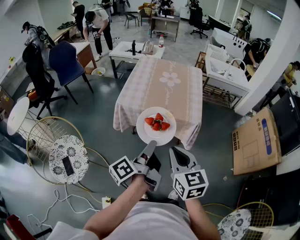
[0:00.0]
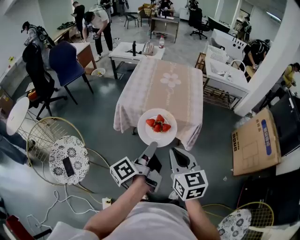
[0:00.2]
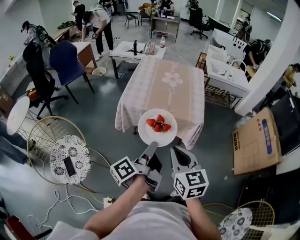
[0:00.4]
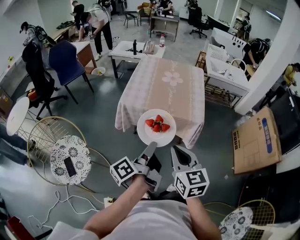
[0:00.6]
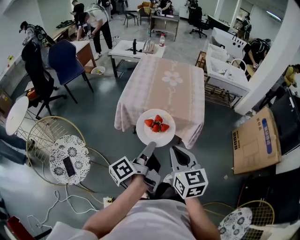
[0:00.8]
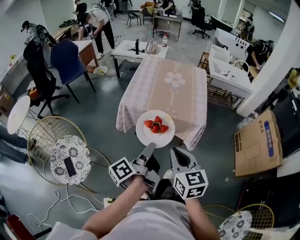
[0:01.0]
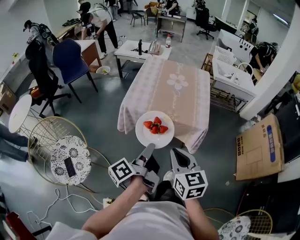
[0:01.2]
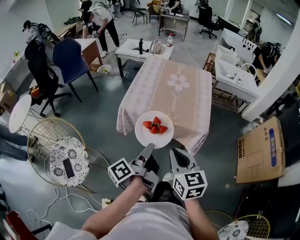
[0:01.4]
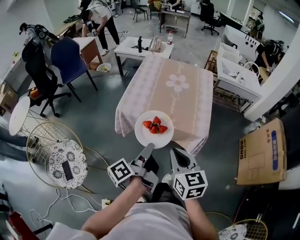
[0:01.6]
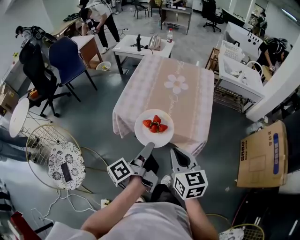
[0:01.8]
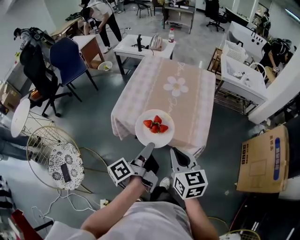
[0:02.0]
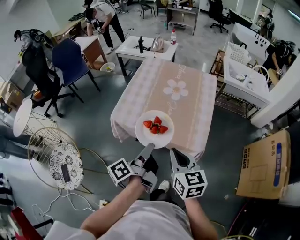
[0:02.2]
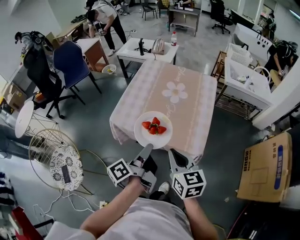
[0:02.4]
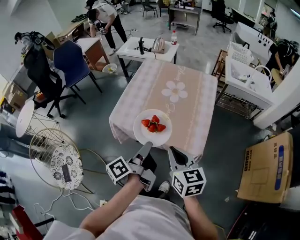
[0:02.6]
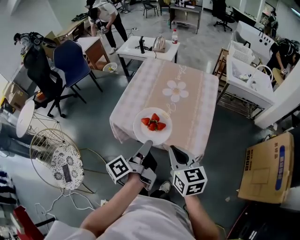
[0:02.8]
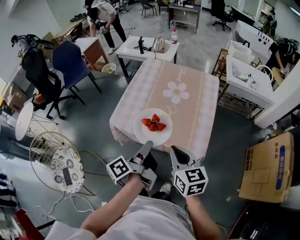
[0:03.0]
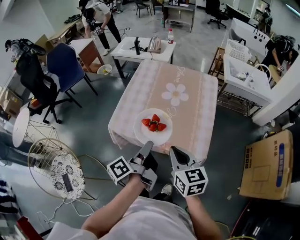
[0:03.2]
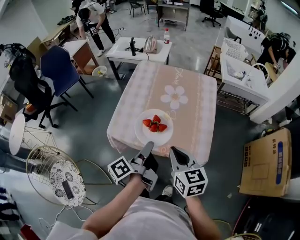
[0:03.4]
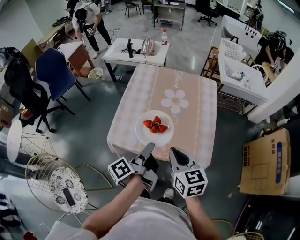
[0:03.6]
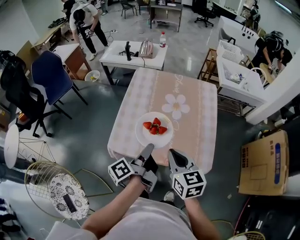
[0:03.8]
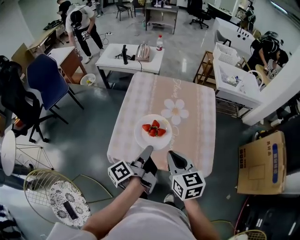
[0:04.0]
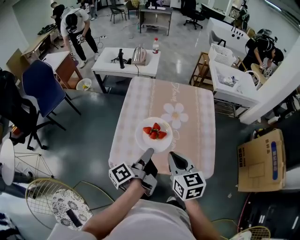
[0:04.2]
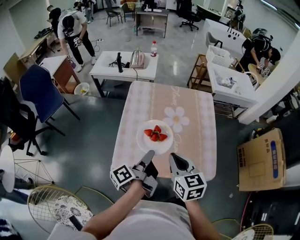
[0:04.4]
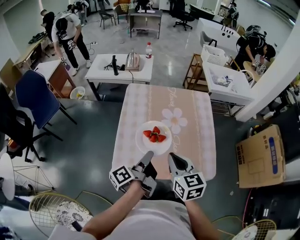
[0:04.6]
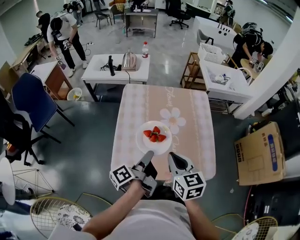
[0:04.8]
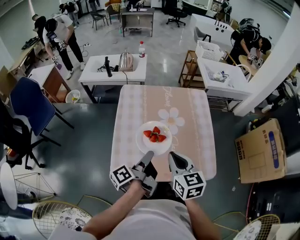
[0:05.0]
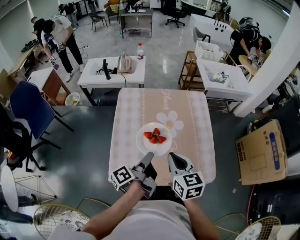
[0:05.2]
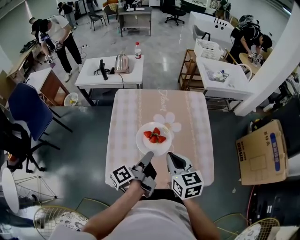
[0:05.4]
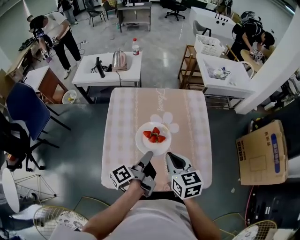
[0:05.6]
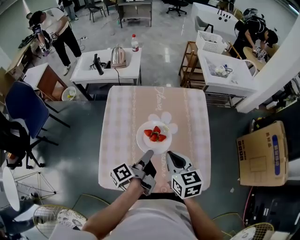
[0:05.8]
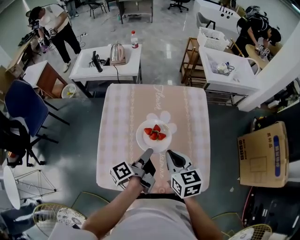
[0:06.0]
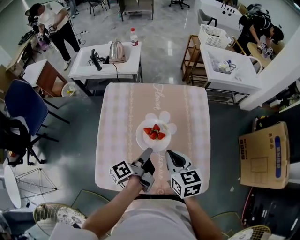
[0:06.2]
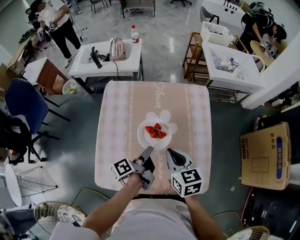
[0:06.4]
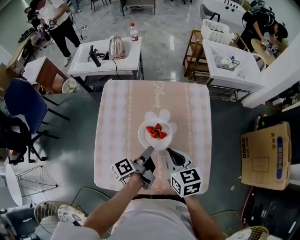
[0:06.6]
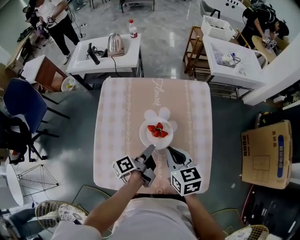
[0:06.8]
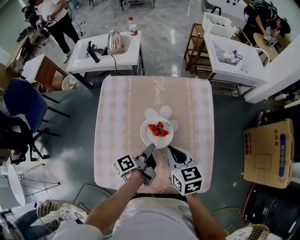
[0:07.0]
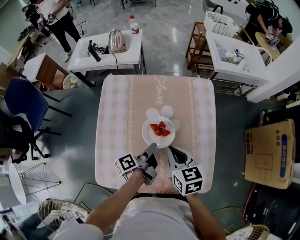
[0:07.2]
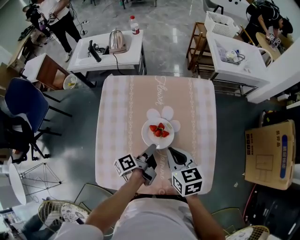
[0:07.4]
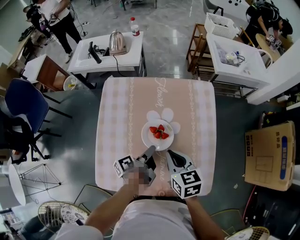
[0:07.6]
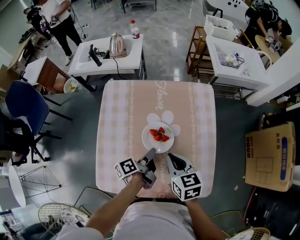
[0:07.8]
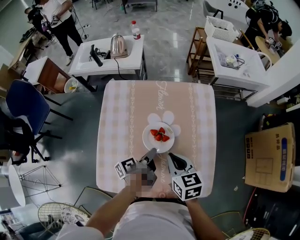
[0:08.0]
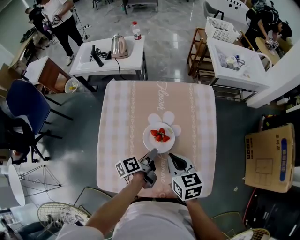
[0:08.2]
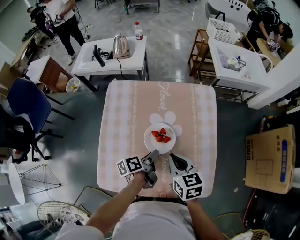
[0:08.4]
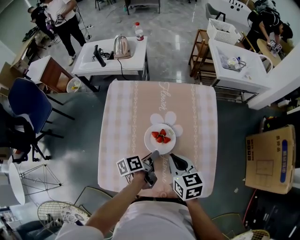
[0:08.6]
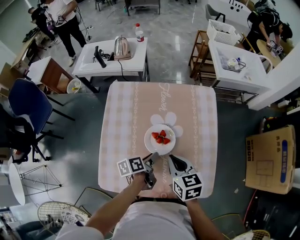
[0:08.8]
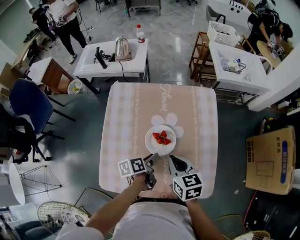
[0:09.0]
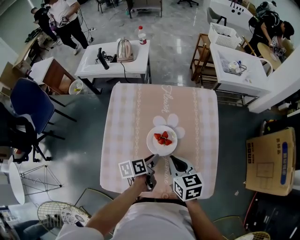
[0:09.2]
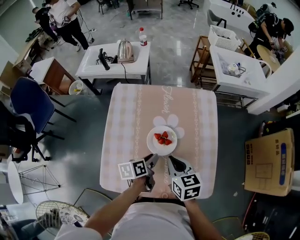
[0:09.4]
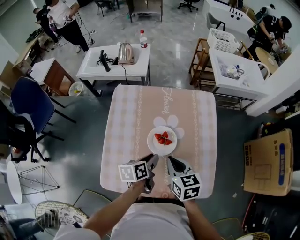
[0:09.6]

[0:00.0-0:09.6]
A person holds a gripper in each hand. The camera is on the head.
0:00.0 to 0:01.6: The right gripper shifts by roughly 10 cm.
0:01.6 to 0:03.2: The right gripper changes place by roughly 20 cm.
0:03.2 to 0:04.8: The right gripper changes place by some 20 cm.
0:04.8 to 0:06.4: The right gripper shifts by roughly 20 cm.

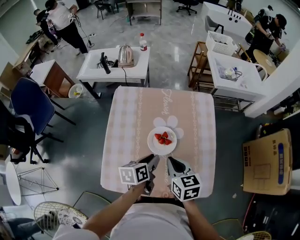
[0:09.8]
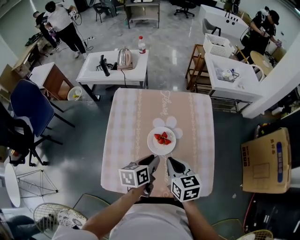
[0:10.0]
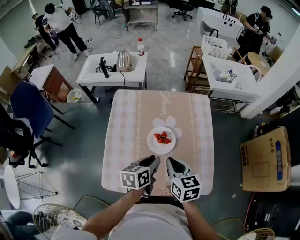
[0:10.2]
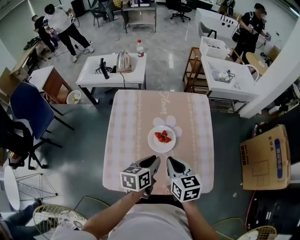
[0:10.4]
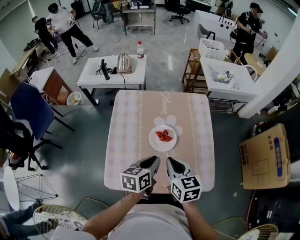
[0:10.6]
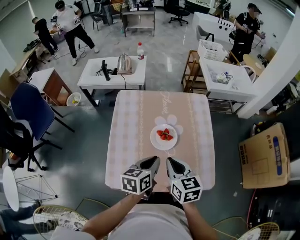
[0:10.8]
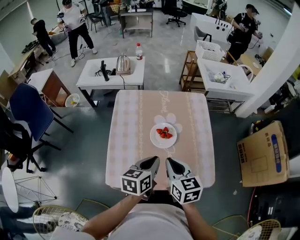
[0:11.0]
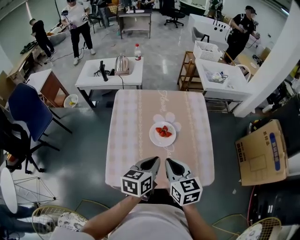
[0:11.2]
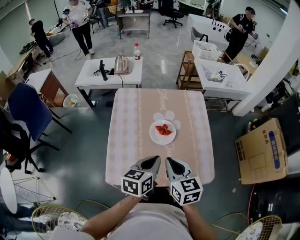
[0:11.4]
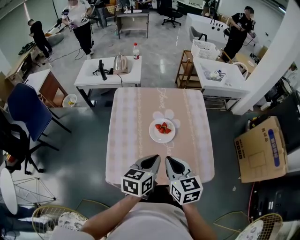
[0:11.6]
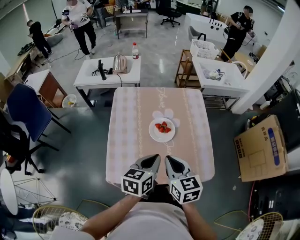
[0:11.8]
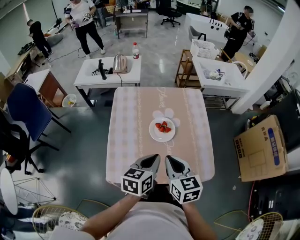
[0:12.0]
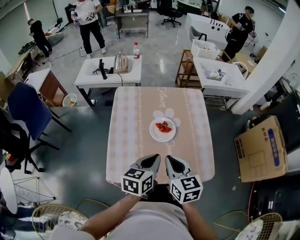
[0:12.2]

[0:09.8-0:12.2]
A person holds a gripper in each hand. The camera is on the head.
0:09.8 to 0:11.0: The right gripper moves some 10 cm.

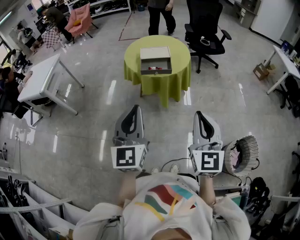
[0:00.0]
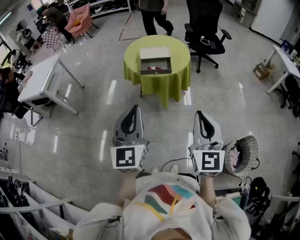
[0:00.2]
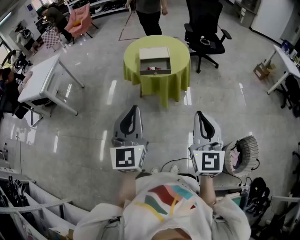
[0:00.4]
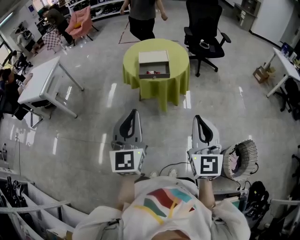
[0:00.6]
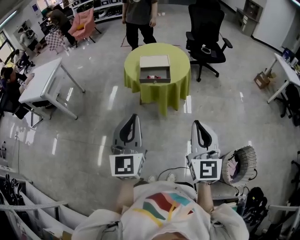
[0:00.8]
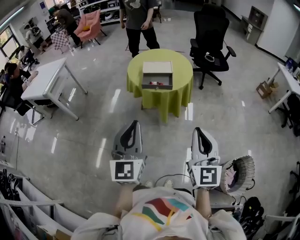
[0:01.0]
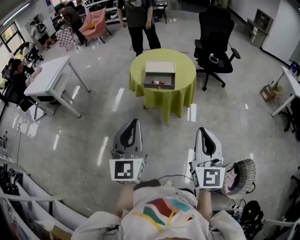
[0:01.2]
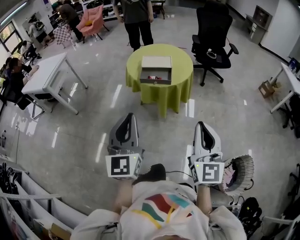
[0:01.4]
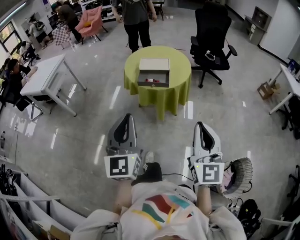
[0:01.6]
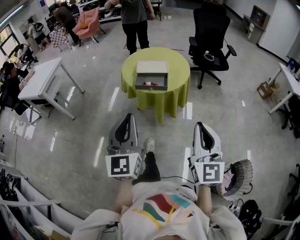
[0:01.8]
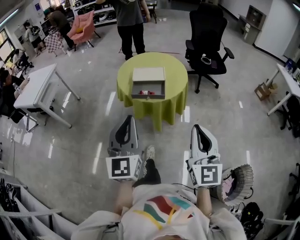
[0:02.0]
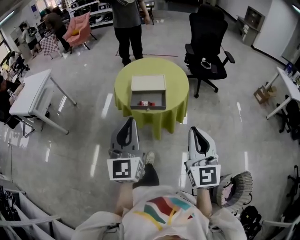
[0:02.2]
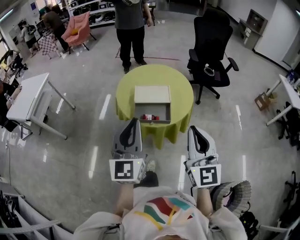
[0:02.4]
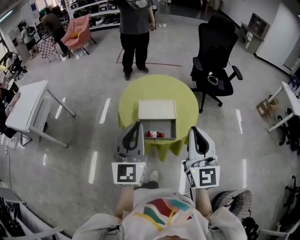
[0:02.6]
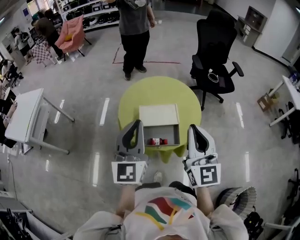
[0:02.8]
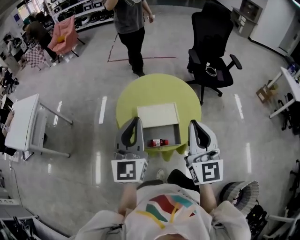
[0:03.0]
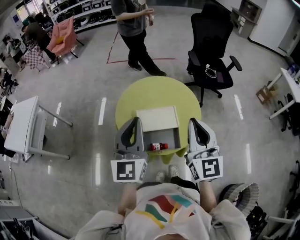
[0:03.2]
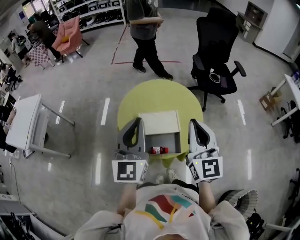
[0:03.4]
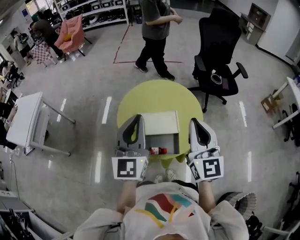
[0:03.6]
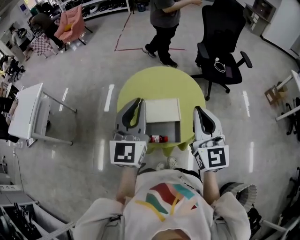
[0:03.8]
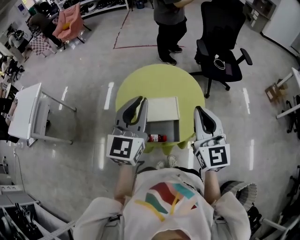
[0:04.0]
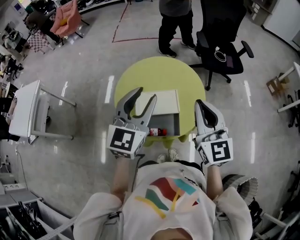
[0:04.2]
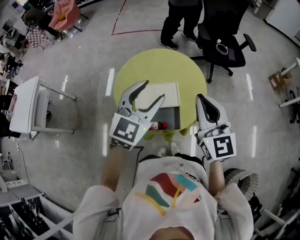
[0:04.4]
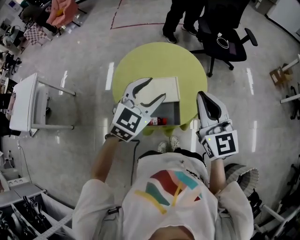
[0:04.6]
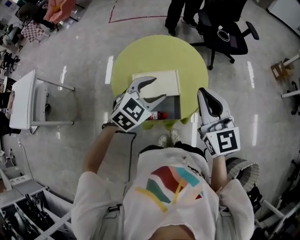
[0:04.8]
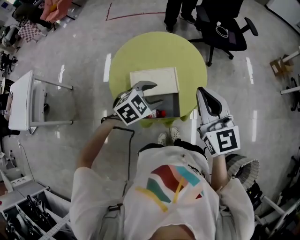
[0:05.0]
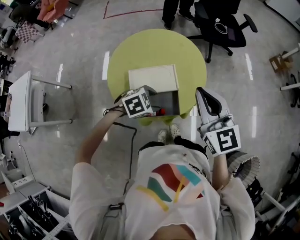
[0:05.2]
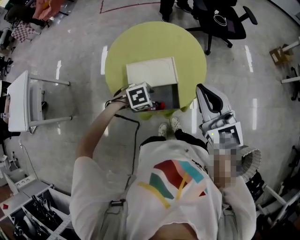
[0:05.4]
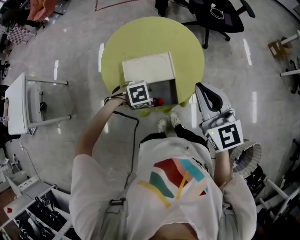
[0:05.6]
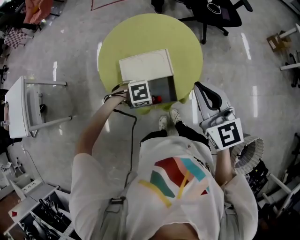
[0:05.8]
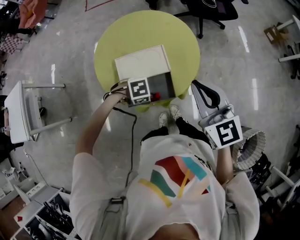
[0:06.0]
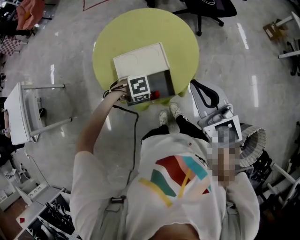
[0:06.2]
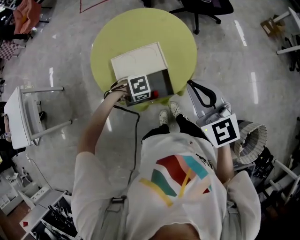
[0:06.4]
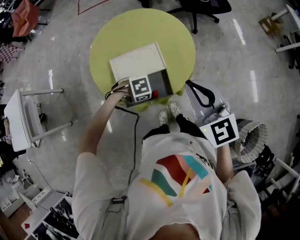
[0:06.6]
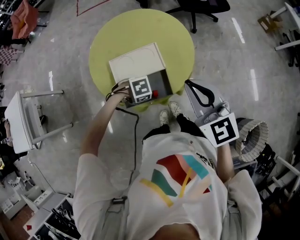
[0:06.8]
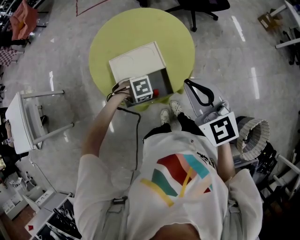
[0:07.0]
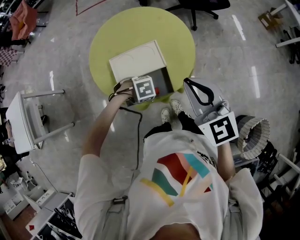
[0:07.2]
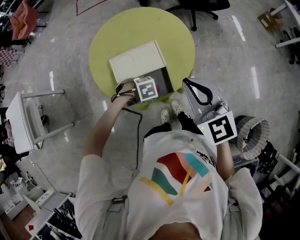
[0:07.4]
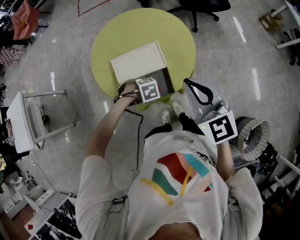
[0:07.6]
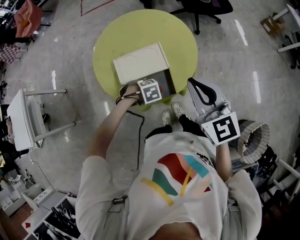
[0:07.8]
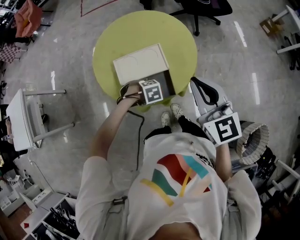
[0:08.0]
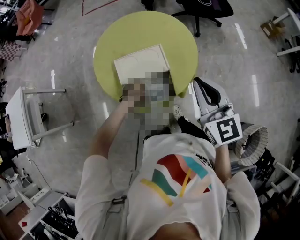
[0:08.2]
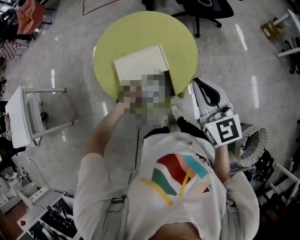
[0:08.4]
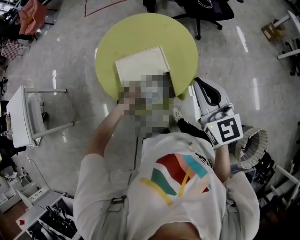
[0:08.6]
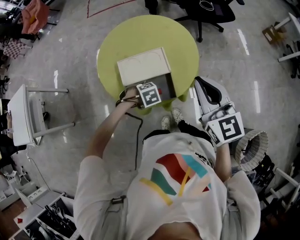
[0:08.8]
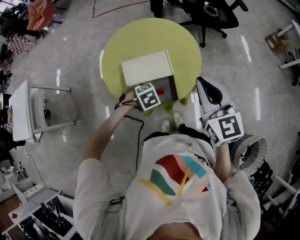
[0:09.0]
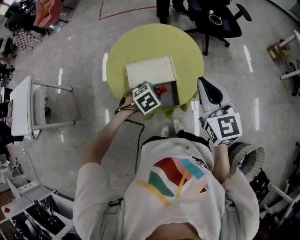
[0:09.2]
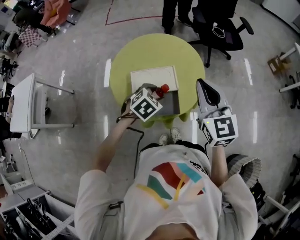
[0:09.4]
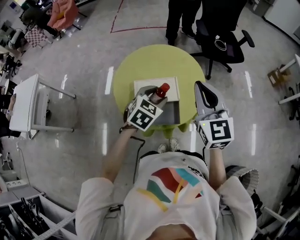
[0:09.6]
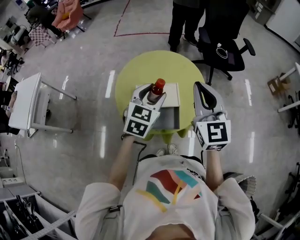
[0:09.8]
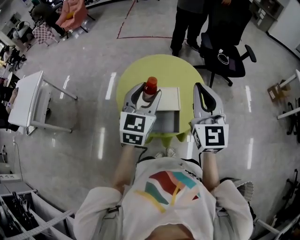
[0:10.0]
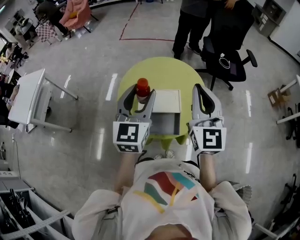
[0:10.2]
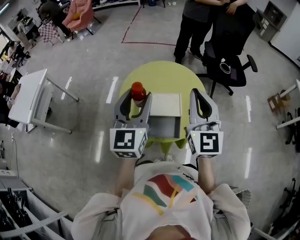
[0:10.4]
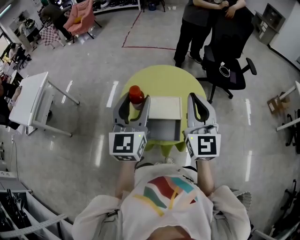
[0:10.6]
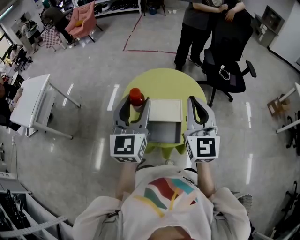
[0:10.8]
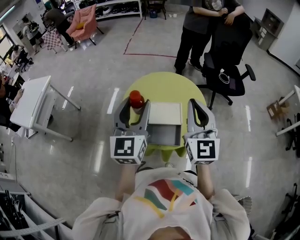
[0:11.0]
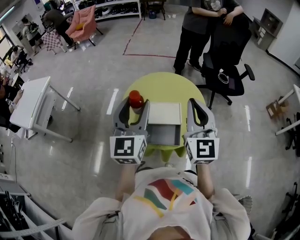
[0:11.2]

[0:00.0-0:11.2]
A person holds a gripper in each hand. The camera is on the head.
0:00.0 to 0:01.6: The right gripper is displaced to the right by roughly 5 cm.
0:01.6 to 0:03.2: The pair of grippers is taken forward, about 50 cm.
0:03.2 to 0:04.8: The left gripper heads downward and to the right, covering roughly 20 cm, tips its fingers downward by roughly 40 degrees, and opens up. The right gripper moves roughly 10 cm.
0:04.8 to 0:06.4: The left gripper goes about 25 cm downward, and points its fingers about 30 degrees further downward, while the right gripper travels downward by approximately 5 cm.
0:06.4 to 0:08.0: The grippers move only a little.
0:08.0 to 0:09.6: The left gripper is displaced upward by some 25 cm, and tips its fingers upward by roughly 40 degrees. Meanwhile the right gripper travels upward by about 5 cm.
0:09.6 to 0:11.2: The right gripper goes roughly 5 cm upward; the left gripper shifts roughly 25 cm upward and to the left, and tilts its fingers some 50 degrees upward.

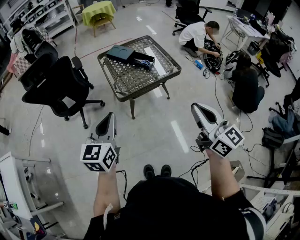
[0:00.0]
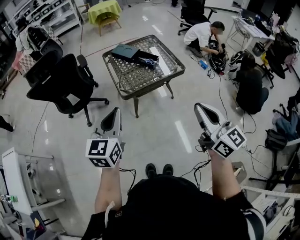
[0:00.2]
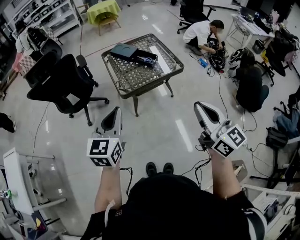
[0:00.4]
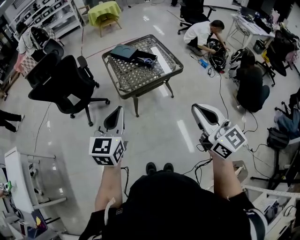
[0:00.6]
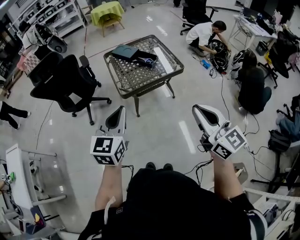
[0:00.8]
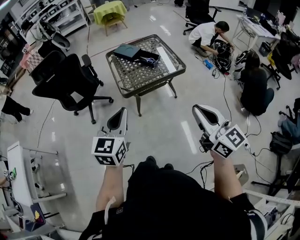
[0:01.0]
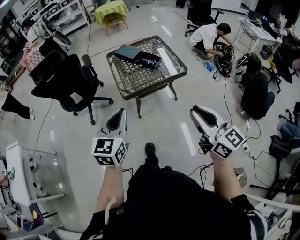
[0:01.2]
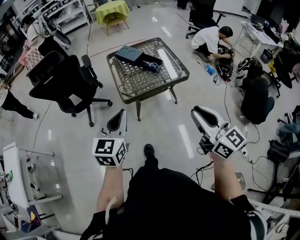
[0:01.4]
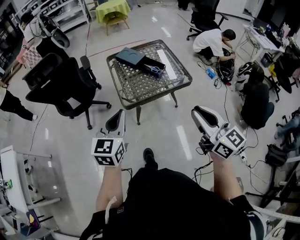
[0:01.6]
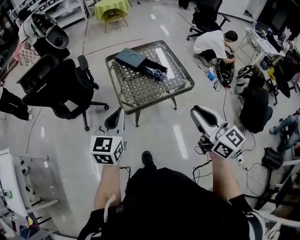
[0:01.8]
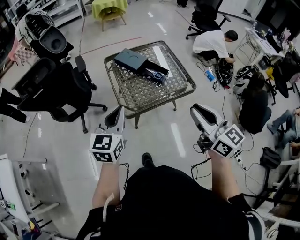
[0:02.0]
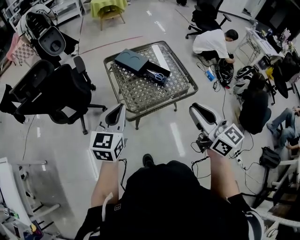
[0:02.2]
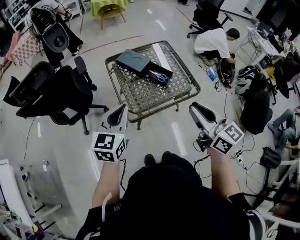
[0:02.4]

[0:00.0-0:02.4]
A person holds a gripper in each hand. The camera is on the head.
0:00.0 to 0:01.2: The left gripper heads to the right, covering about 5 cm.
0:01.2 to 0:02.4: Both grippers travel together forward, about 25 cm.
